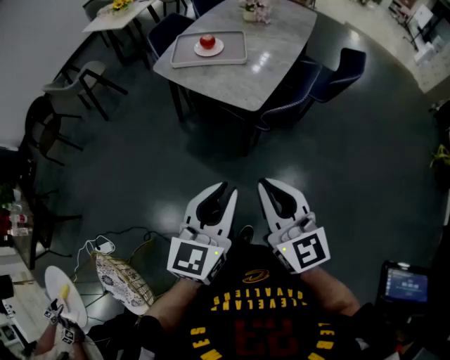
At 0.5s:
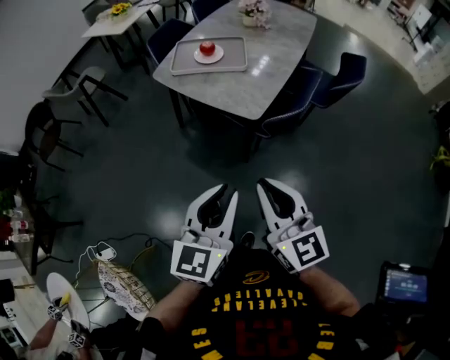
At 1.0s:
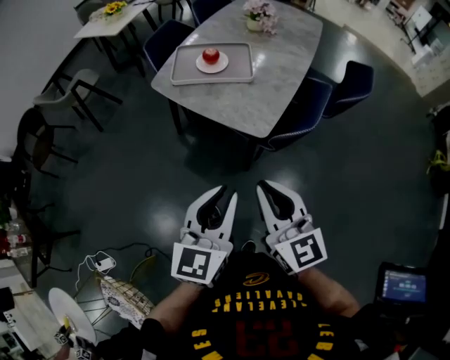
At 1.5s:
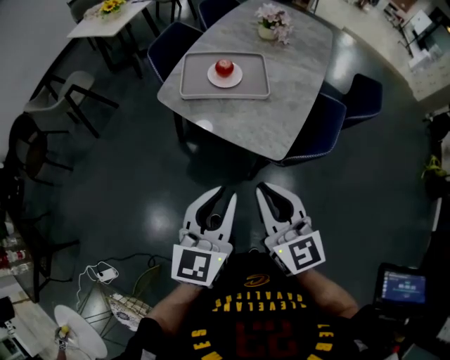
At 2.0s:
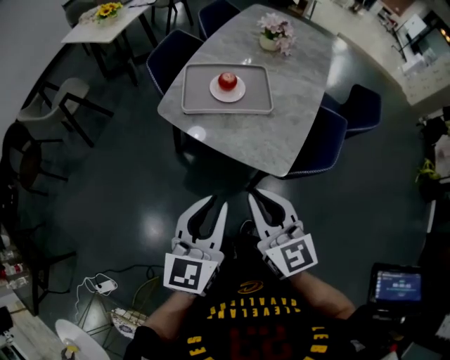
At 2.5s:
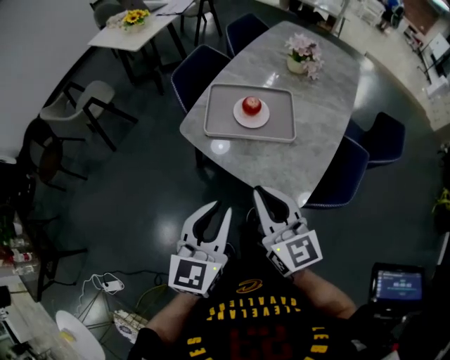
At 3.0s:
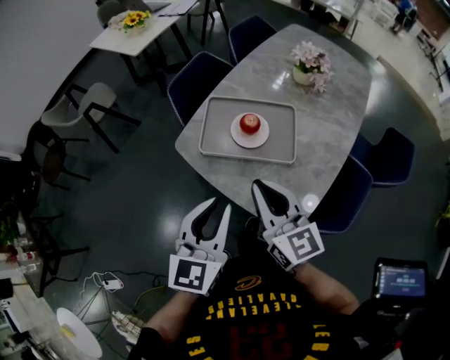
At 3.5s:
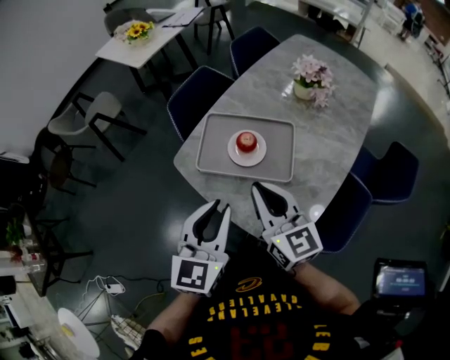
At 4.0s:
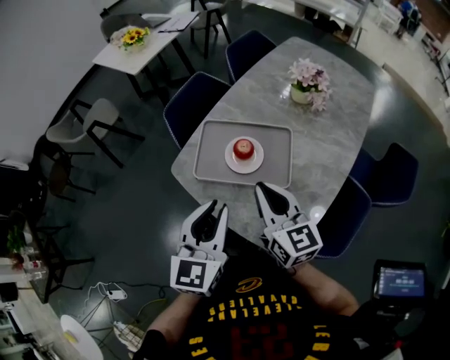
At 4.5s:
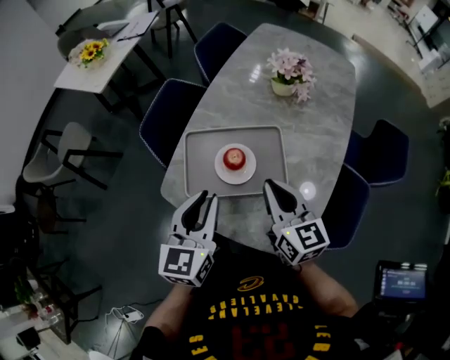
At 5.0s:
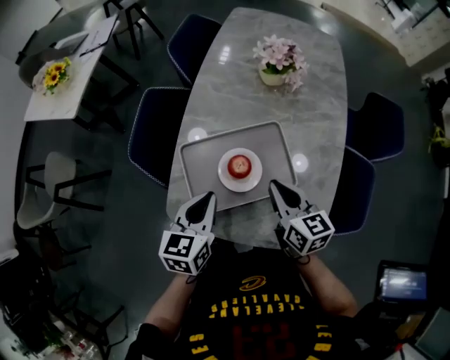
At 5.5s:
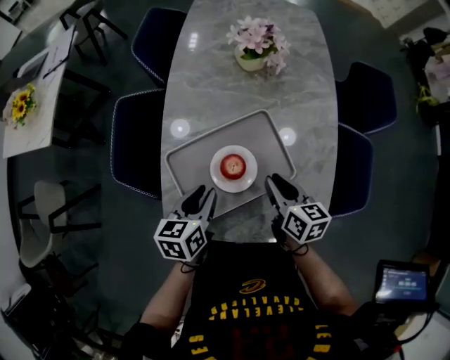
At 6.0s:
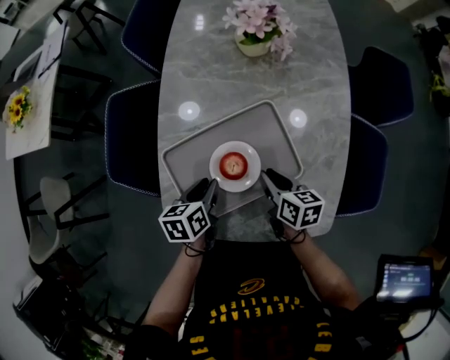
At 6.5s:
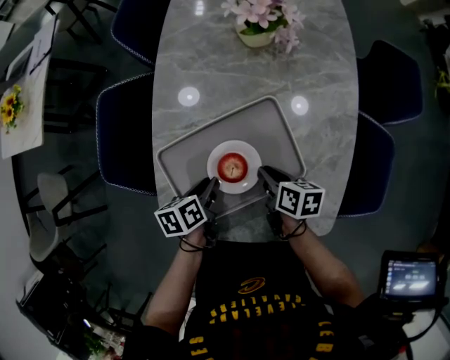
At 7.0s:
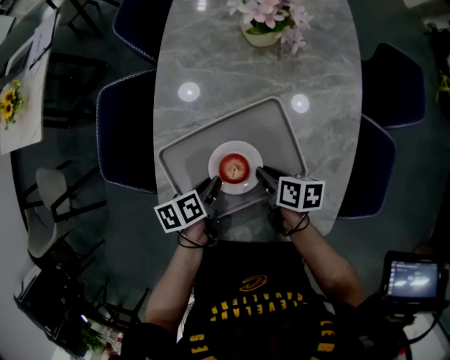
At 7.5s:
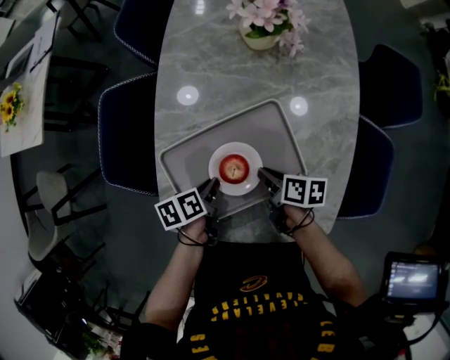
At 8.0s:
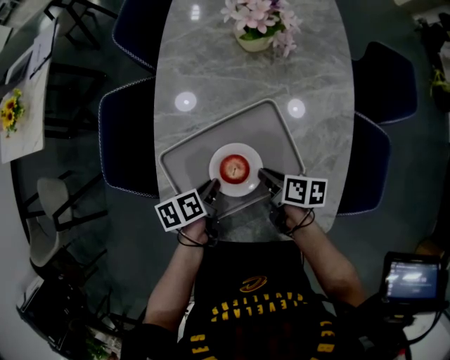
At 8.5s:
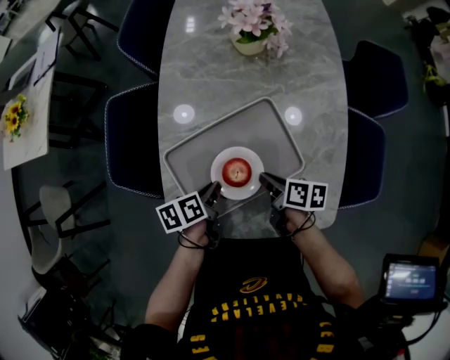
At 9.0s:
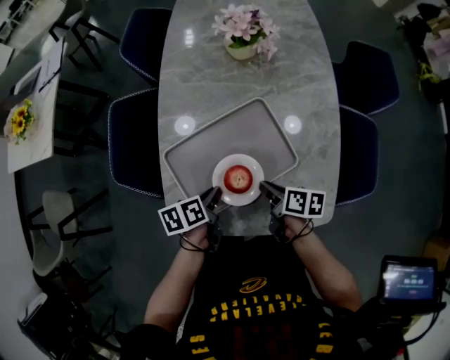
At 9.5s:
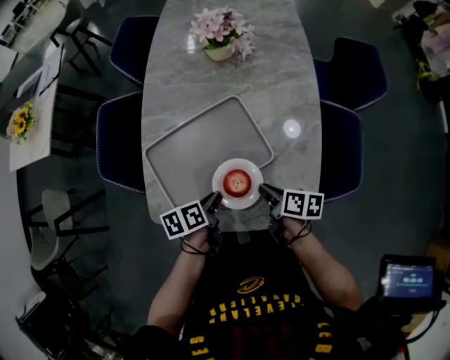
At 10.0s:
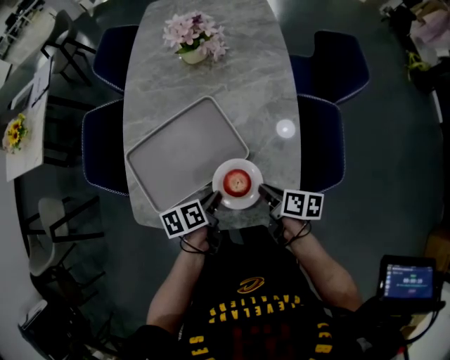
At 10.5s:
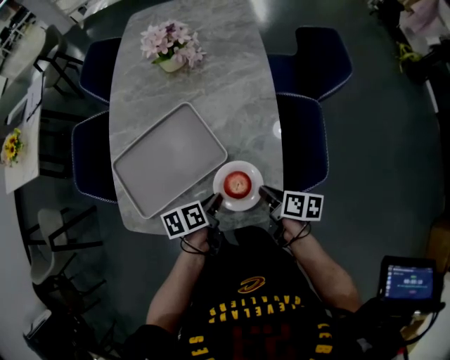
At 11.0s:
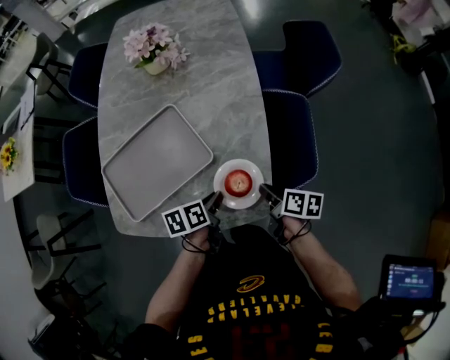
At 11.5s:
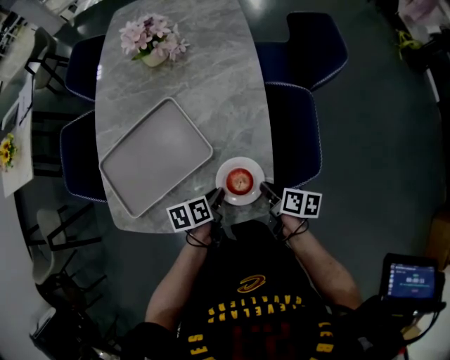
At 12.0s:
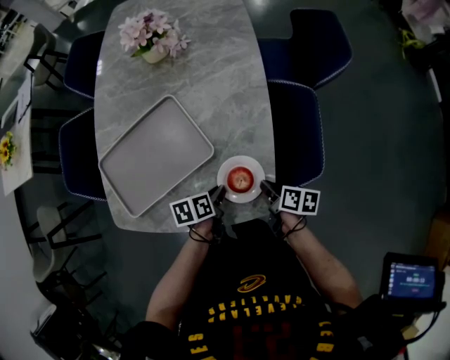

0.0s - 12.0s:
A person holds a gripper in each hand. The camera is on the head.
0.0s - 2.0s: Both grippers move forward and to the left, some 30 cm.
2.0s - 4.0s: Both grippers move forward, approximately 25 cm.
4.0s - 6.0s: Both grippers travel together downward, about 25 cm. The right gripper tilts its fingers some 30 degrees downward, while the left gripper tilts its fingers roughly 30 degrees downward.
6.0s - 8.0s: The left gripper changes its angle by roughly 20 degrees, while the right gripper rotates about 20 degrees.
8.0s - 10.0s: The grippers both shift to the right and backward by about 20 cm.
10.0s - 12.0s: Both grippers travel together to the right and downward, about 15 cm.

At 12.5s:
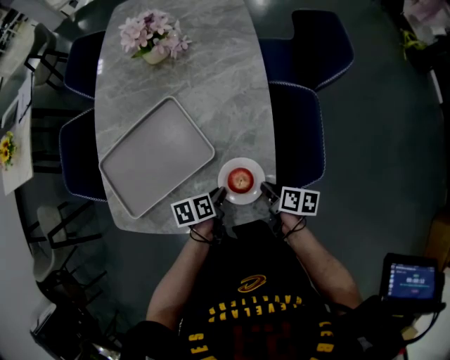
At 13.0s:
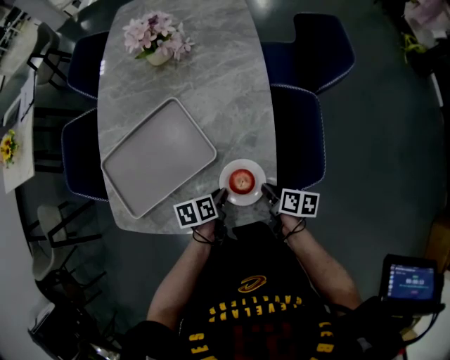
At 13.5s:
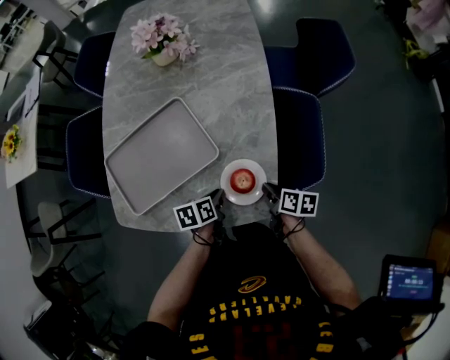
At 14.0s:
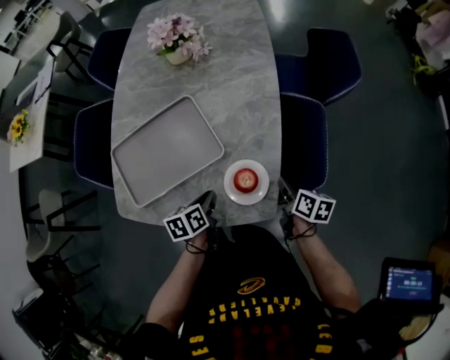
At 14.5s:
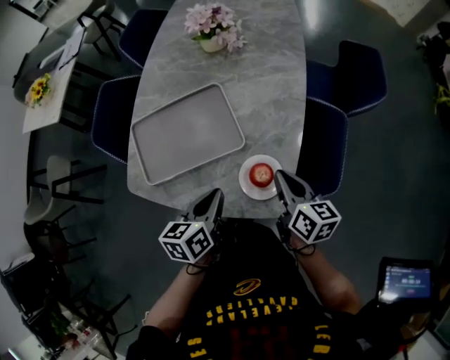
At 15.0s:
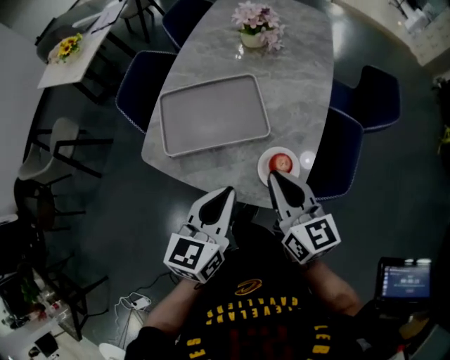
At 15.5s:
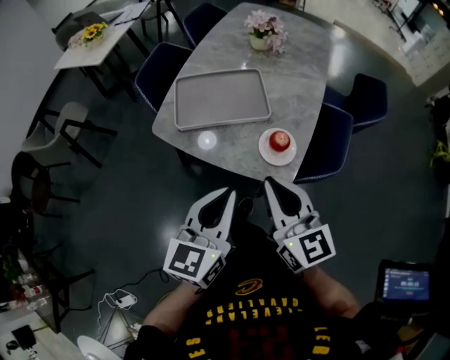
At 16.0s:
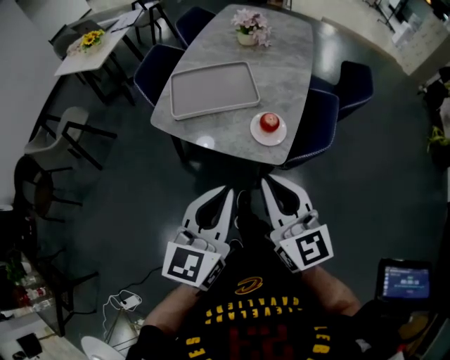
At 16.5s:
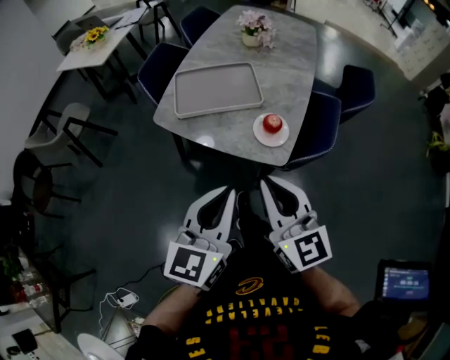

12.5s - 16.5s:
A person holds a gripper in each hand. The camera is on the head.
12.5s - 14.5s: Both grippers travel together upward, roughly 15 cm. The left gripper rotates roughly 30 degrees, while the right gripper rotates about 40 degrees.
14.5s - 16.5s: The right gripper travels backward, upward and to the left by approximately 35 cm, and changes its angle by approximately 50 degrees. The left gripper moves backward and upward, roughly 35 cm, and turns by some 40 degrees.

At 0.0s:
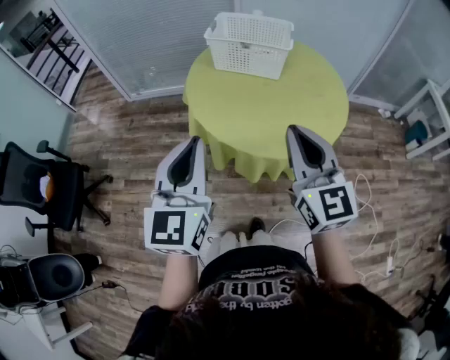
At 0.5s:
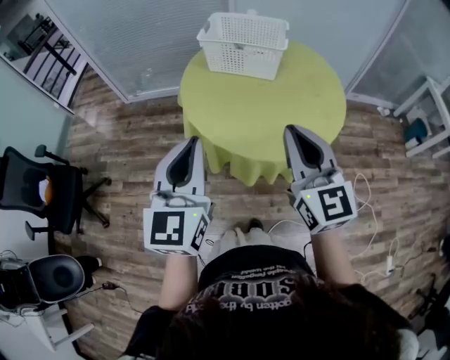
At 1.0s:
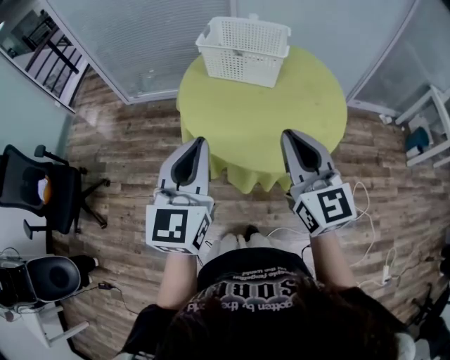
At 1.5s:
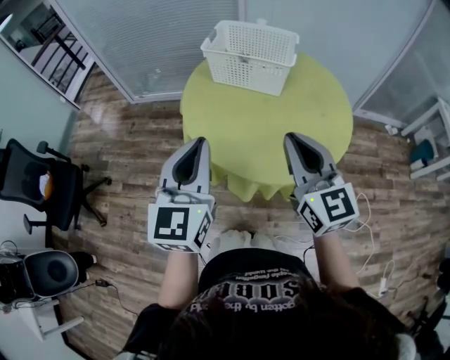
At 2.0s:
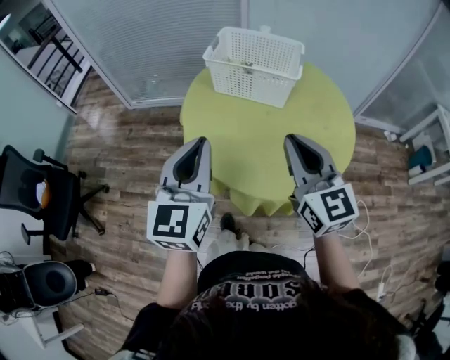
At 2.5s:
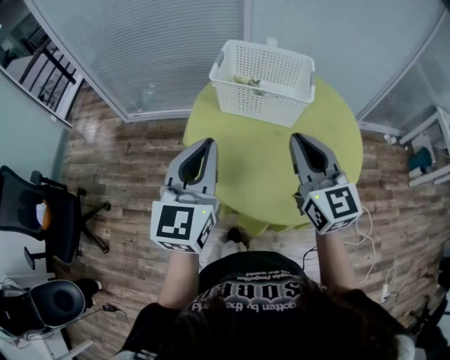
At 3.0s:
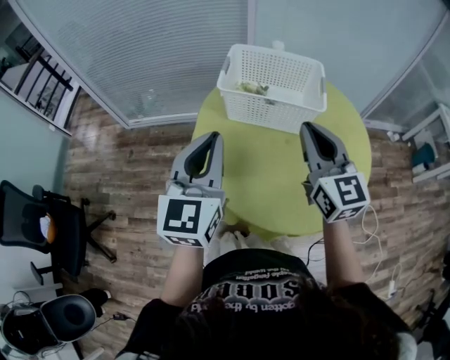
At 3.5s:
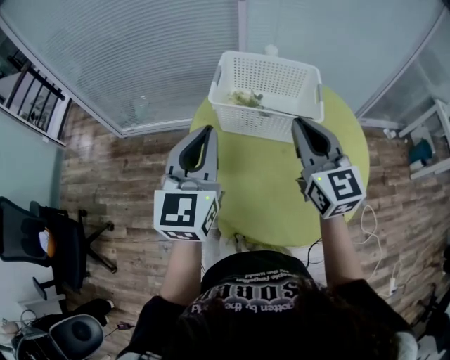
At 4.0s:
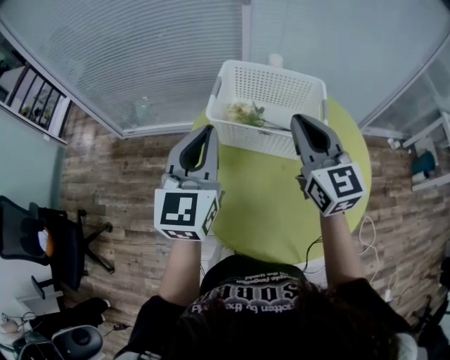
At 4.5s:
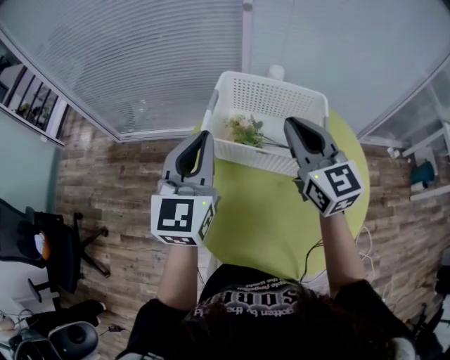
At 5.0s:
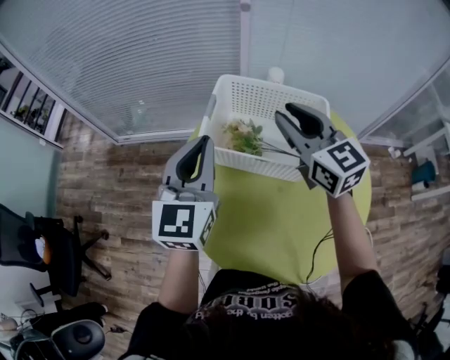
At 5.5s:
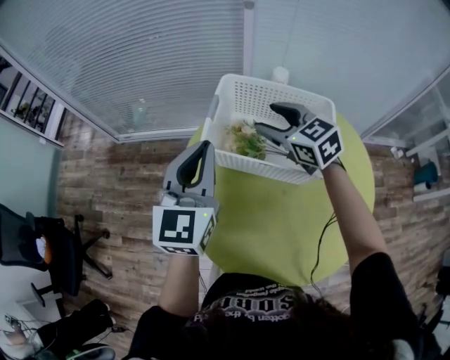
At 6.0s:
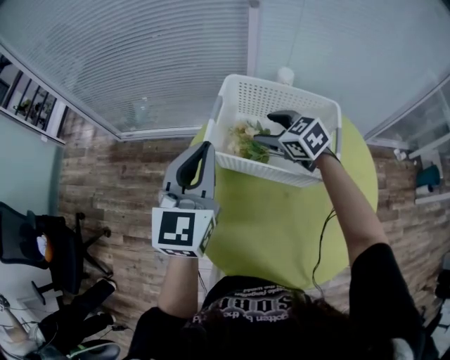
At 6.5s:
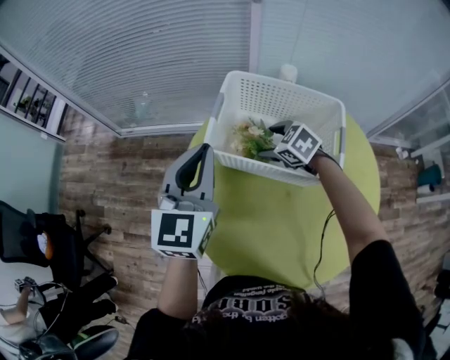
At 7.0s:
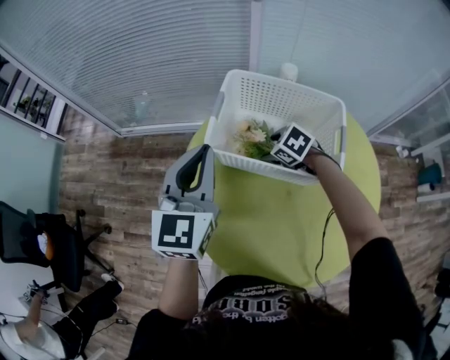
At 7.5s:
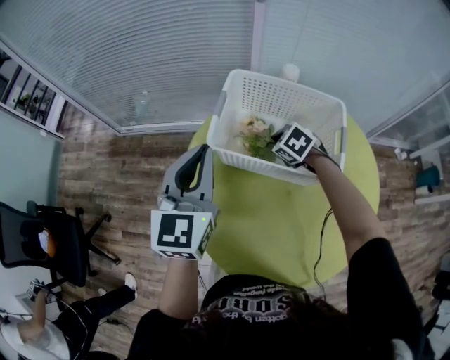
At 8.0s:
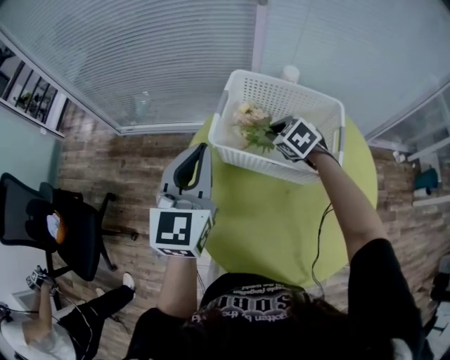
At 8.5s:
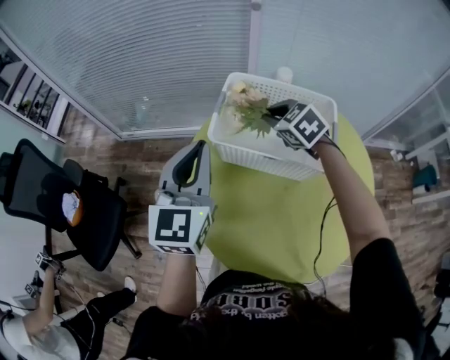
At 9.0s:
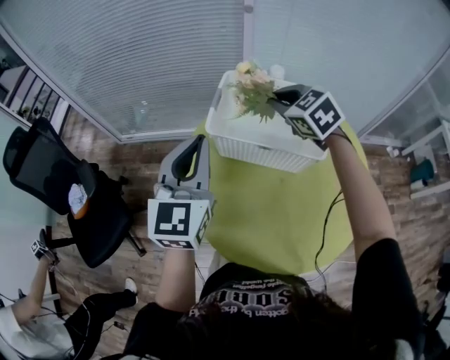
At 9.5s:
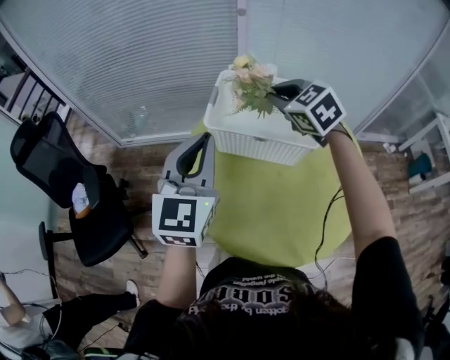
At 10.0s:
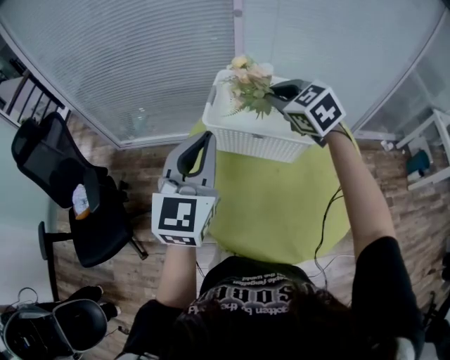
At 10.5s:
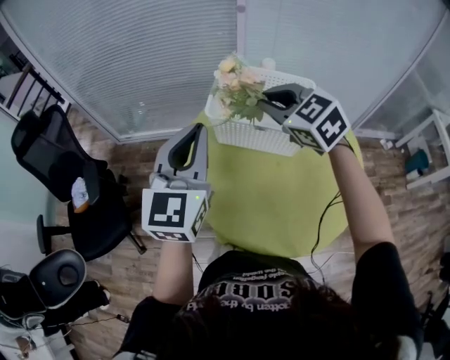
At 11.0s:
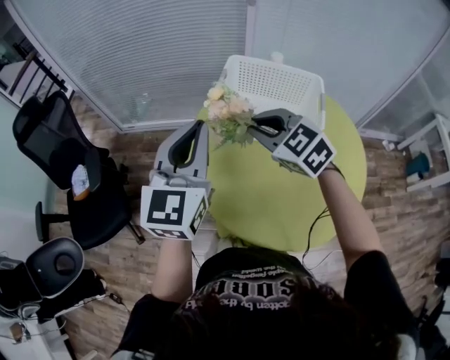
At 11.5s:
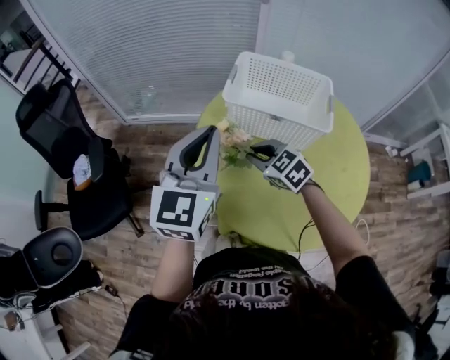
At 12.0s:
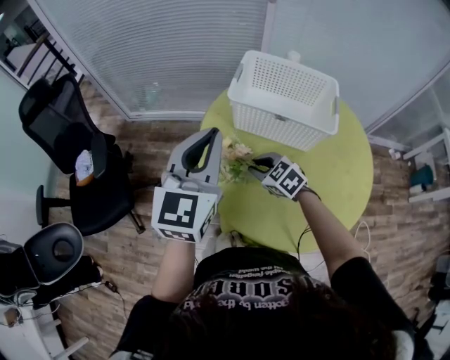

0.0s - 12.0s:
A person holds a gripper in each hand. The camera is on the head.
0.0s - 2.0s: The grippers both shift forward by some 15 cm.
2.0s - 4.0s: Both grippers move forward, approximately 25 cm.
4.0s - 6.0s: The right gripper heads downward and forward, covering approximately 25 cm, tips its fingers downward by about 40 degrees, and opens its fingers. Meanwhile the left gripper travels forward by approximately 10 cm.
6.0s - 8.0s: The right gripper heads downward, covering some 5 cm, and closes.
8.0s - 10.0s: The right gripper shifts approximately 20 cm upward, and swivels roughly 20 degrees. Meanwhile the left gripper moves backward and upward, about 10 cm.
10.0s - 12.0s: The left gripper travels to the left by some 5 cm. The right gripper goes approximately 30 cm downward, backward and to the left, and swivels some 20 degrees.
